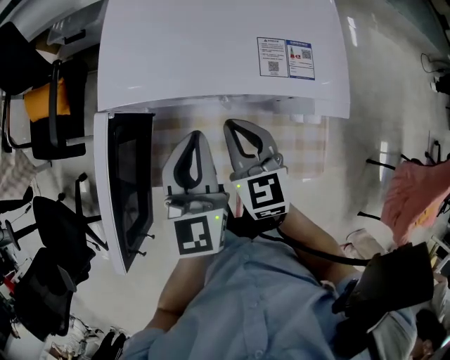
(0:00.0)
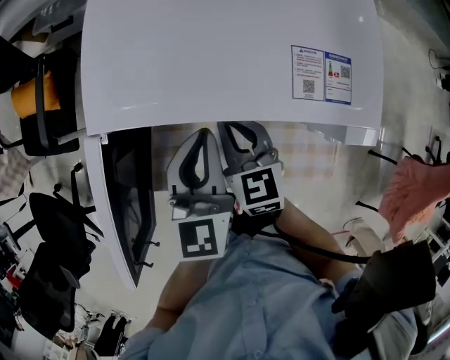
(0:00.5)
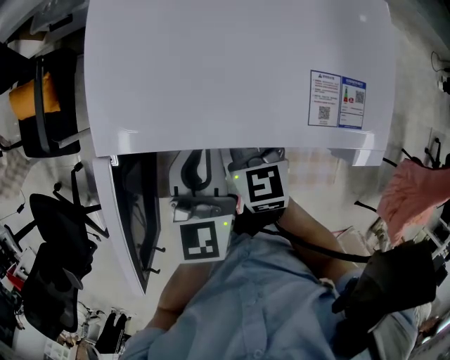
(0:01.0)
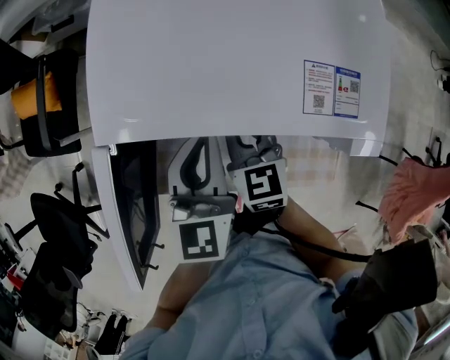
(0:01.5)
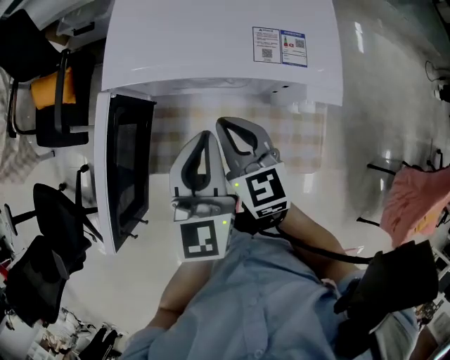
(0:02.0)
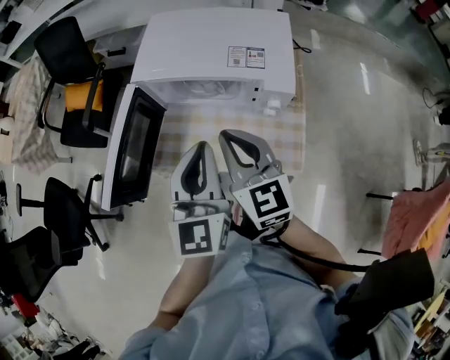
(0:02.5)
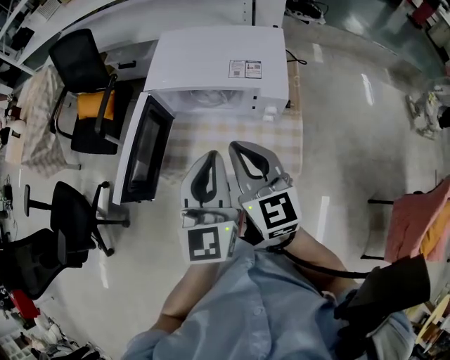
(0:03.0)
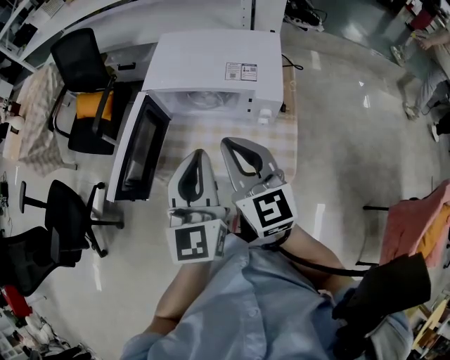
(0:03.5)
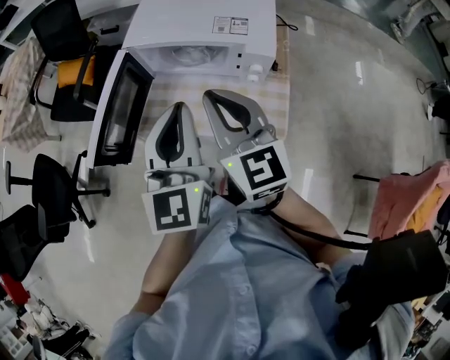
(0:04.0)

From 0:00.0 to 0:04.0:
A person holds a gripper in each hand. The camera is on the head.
From 0:00.0 to 0:02.0: The right gripper goes forward and returns, some 5 cm each way.
From 0:02.0 to 0:04.0: Both grippers move upward and backward, roughly 20 cm. The right gripper turns by approximately 20 degrees.

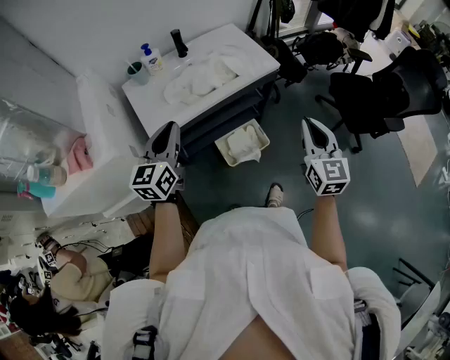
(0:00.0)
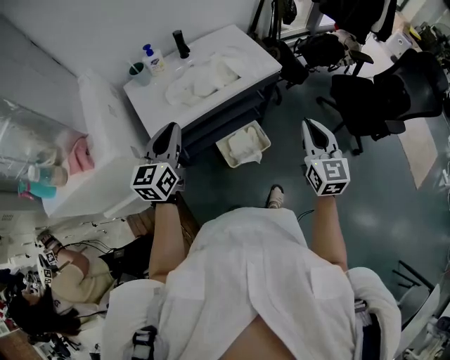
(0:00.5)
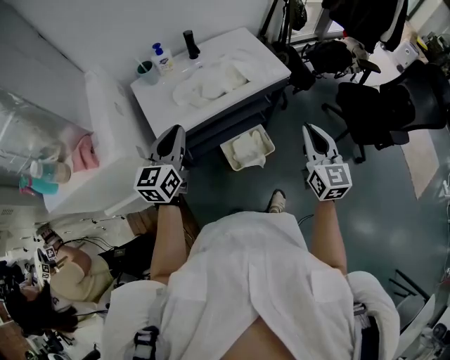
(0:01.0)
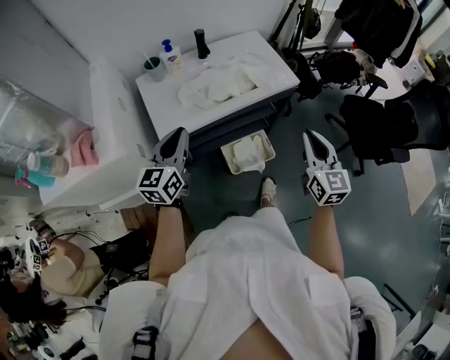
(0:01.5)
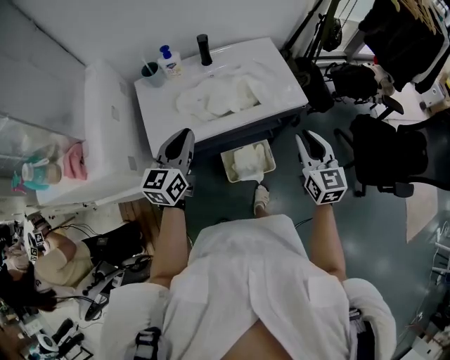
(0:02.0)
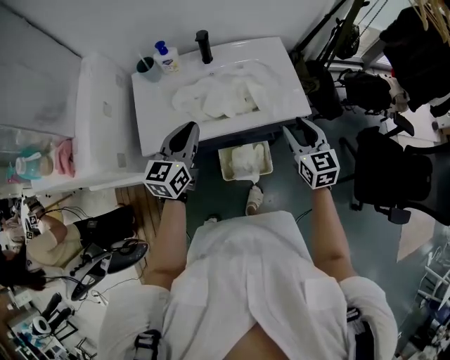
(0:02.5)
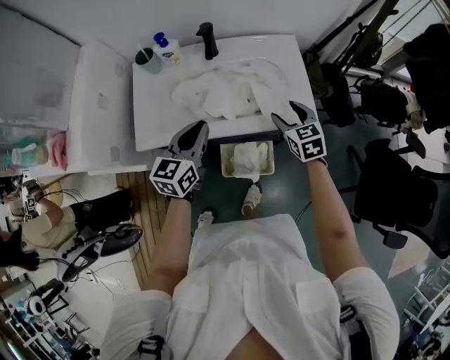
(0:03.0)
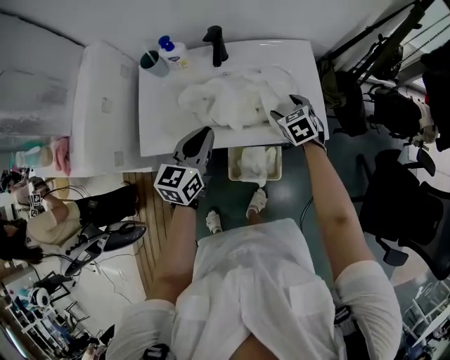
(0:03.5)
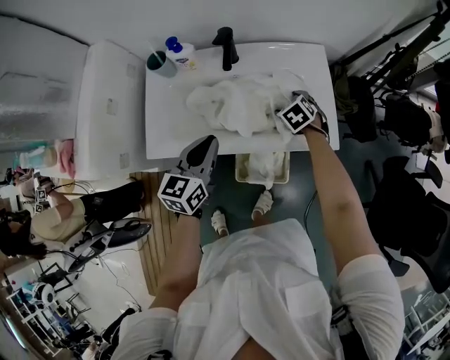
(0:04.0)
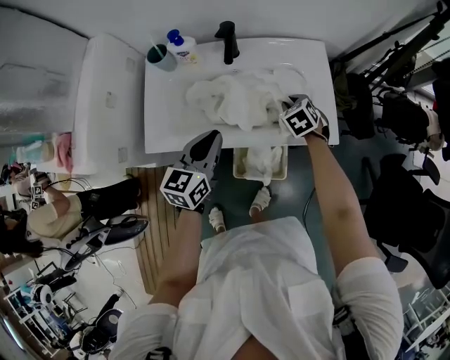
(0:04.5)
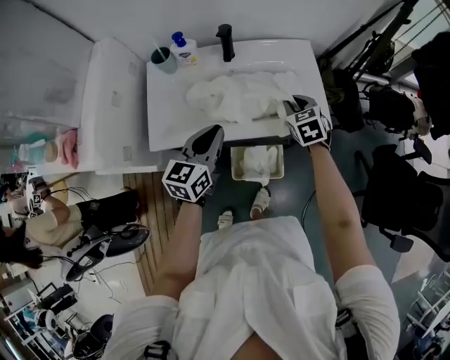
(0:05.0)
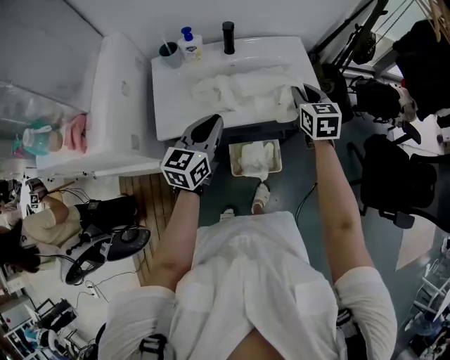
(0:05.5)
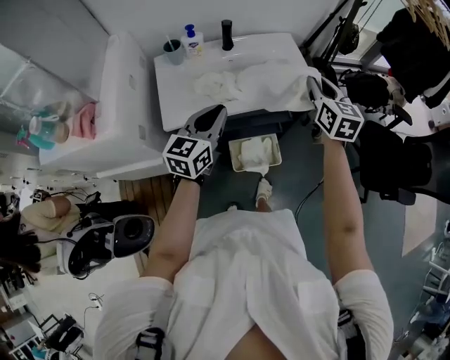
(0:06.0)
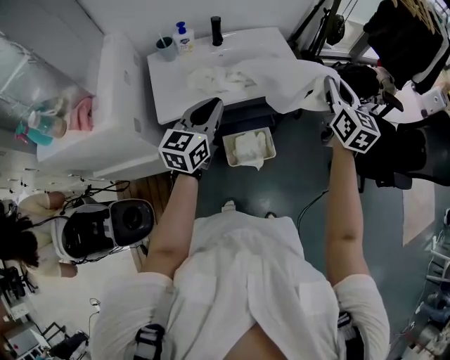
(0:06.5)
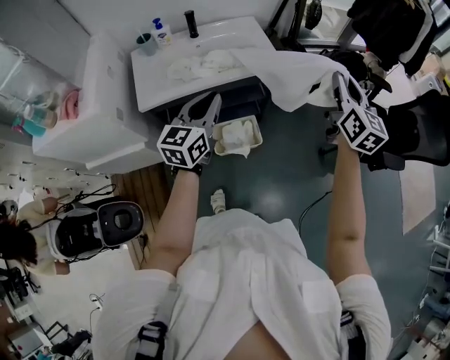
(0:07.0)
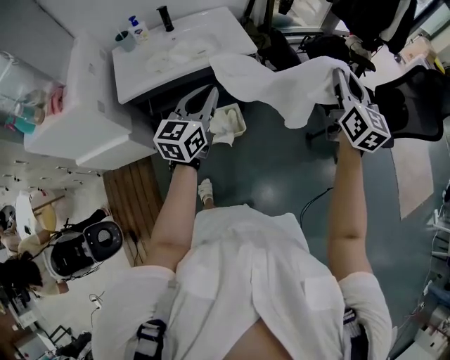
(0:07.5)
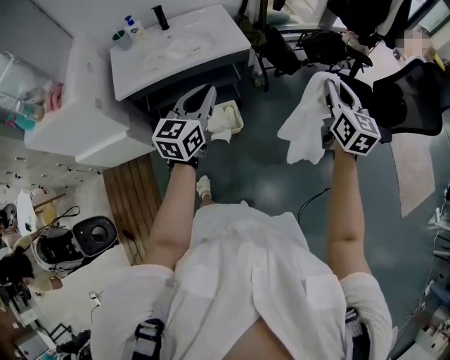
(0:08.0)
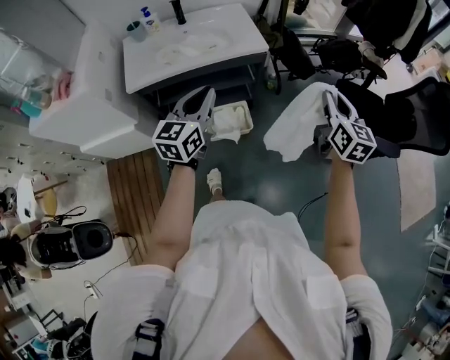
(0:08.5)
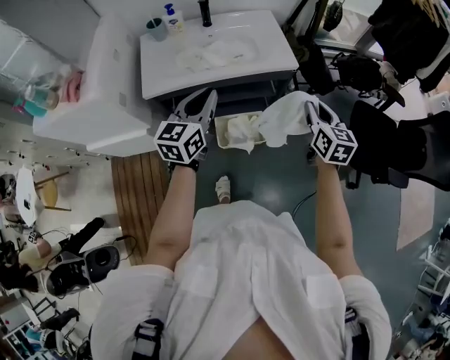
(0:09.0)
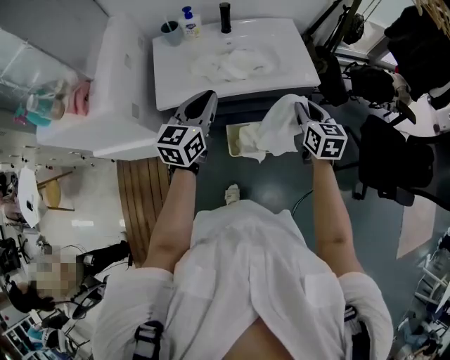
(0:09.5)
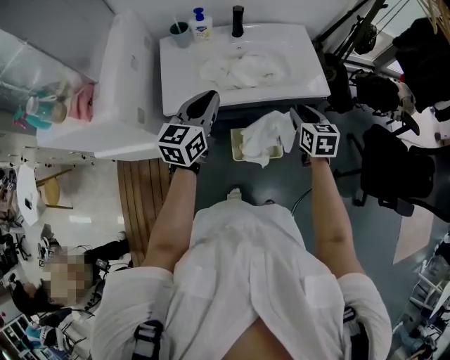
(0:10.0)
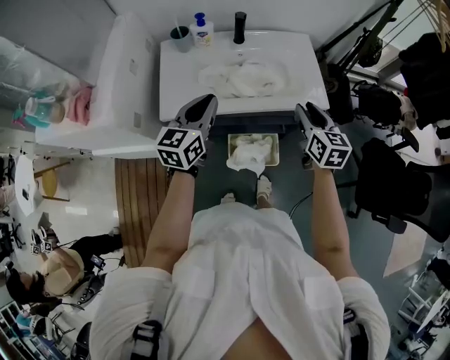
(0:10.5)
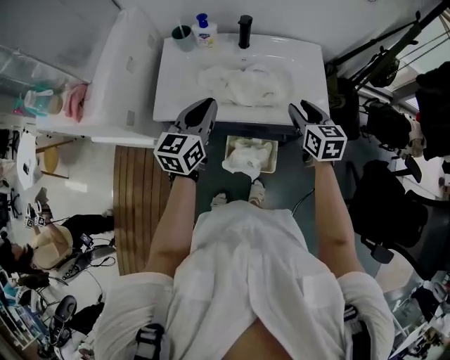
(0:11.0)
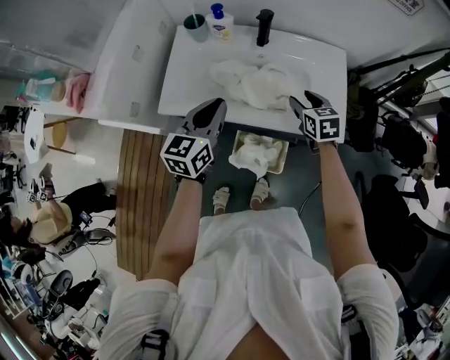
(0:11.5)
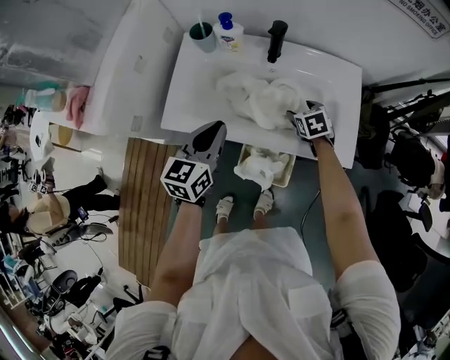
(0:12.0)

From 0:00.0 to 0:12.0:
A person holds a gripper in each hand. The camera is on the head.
From 0:00.0 to 0:02.0: The right gripper travels forward by some 20 cm; the left gripper is displaced forward by some 10 cm.
From 0:02.0 to 0:04.0: The left gripper travels forward, to the right and downward by some 15 cm. Meanwhile the right gripper goes roughly 40 cm forward and downward, tips its fingers downward by some 50 degrees, and opens.
From 0:04.0 to 0:06.0: The right gripper goes some 35 cm upward, tilts its fingers approximately 50 degrees upward, and closes. Meanwhile the left gripper moves roughly 20 cm, and swivels roughly 20 degrees.
From 0:06.0 to 0:08.0: The grippers both shift to the right and backward by roughly 40 cm.
From 0:08.0 to 0:10.0: The left gripper travels to the left and forward by some 35 cm. The right gripper heads to the left, forward and downward, covering approximately 50 cm, and changes its angle by some 30 degrees.
From 0:10.0 to 0:12.0: The right gripper is displaced forward and downward by about 30 cm, swivels approximately 40 degrees, and opens its fingers. The left gripper is displaced forward and downward by roughly 15 cm, and rotates roughly 20 degrees.

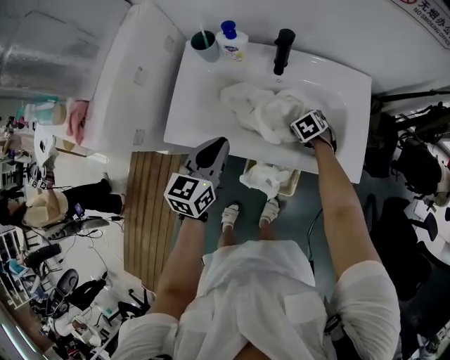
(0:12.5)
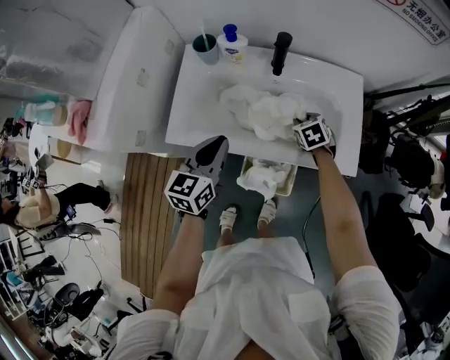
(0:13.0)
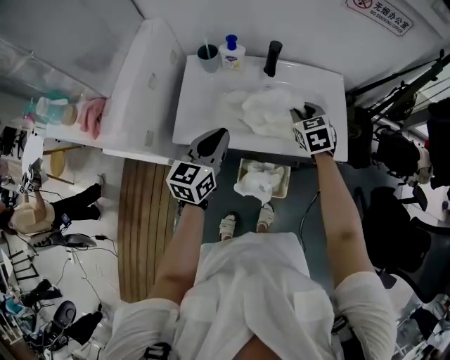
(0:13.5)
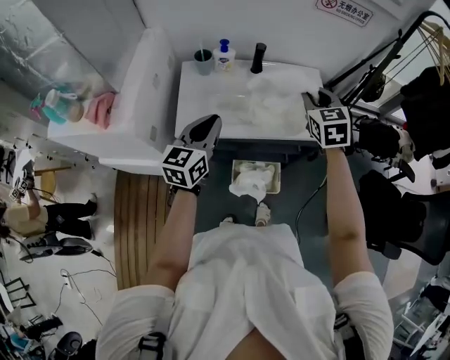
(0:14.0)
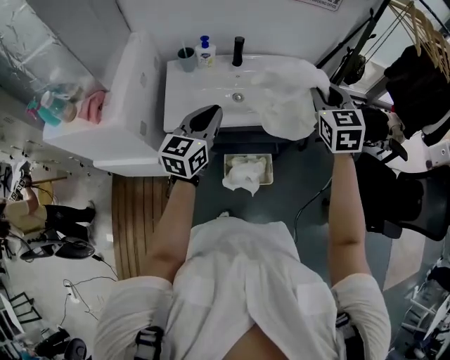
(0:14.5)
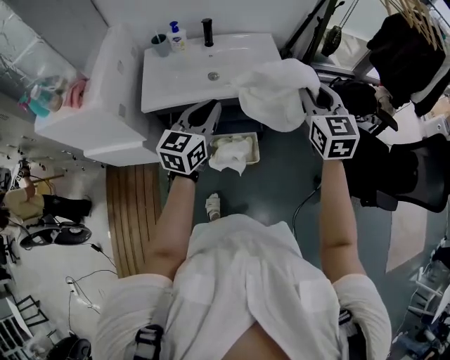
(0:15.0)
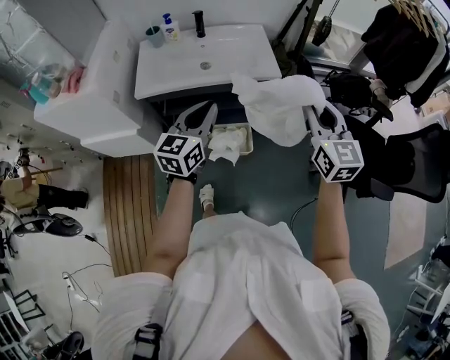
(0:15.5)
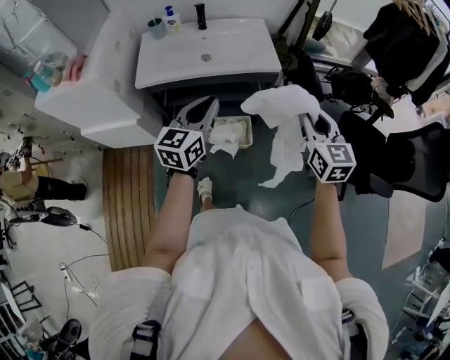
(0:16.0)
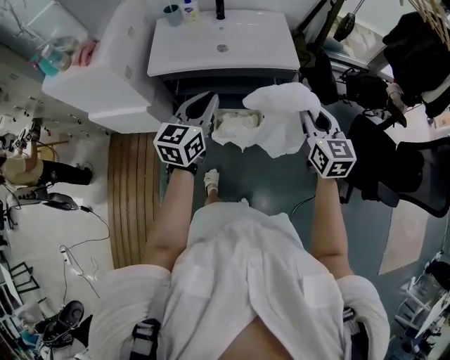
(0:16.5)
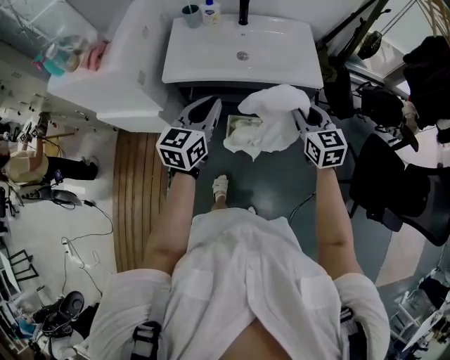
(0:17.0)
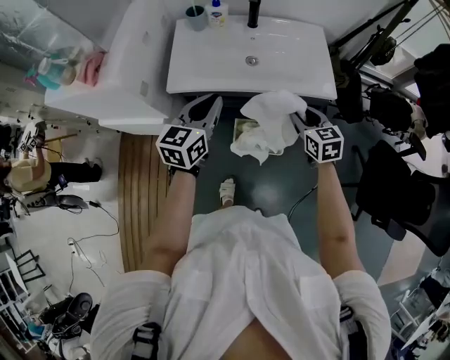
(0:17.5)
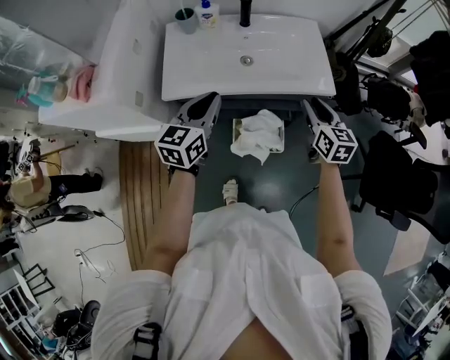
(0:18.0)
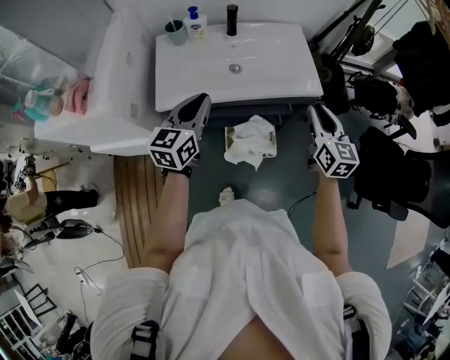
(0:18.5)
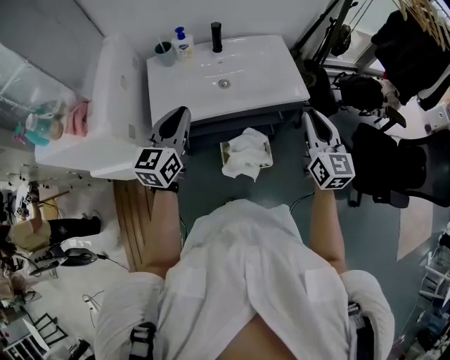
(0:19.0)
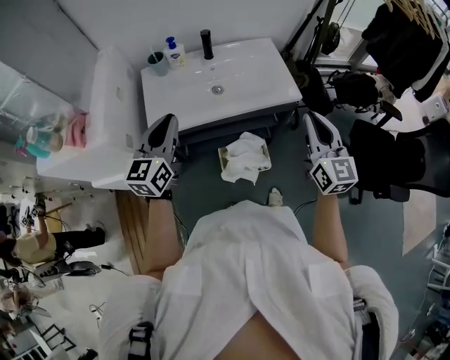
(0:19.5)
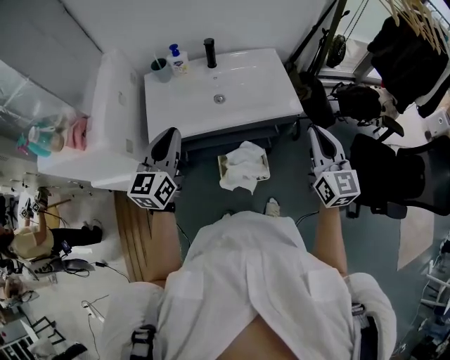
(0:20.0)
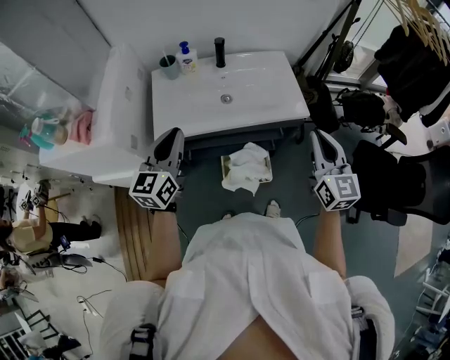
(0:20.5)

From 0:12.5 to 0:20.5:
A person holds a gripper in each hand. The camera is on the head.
From 0:12.5 to 0:14.5: The right gripper goes some 50 cm upward, tips its fingers upward by about 50 degrees, and closes its fingers, while the left gripper goes approximately 15 cm upward, and swivels some 30 degrees.
From 0:14.5 to 0:16.5: The left gripper goes roughly 20 cm backward and to the right. Meanwhile the right gripper moves backward, to the right and downward, some 30 cm, and swivels roughly 20 degrees.
From 0:16.5 to 0:18.5: The grippers both shift forward and to the left by roughly 20 cm.
From 0:18.5 to 0:20.5: The left gripper heads upward, covering about 5 cm. The right gripper goes approximately 10 cm upward and backward.

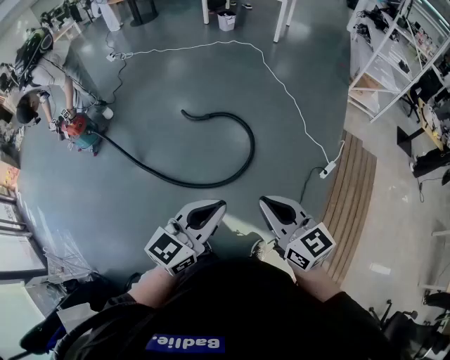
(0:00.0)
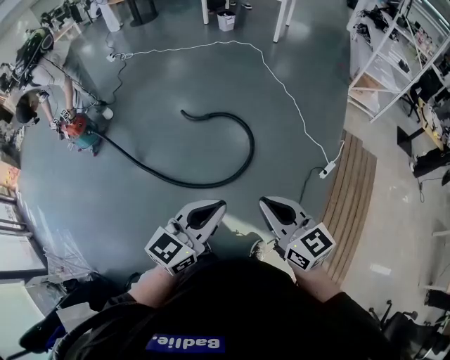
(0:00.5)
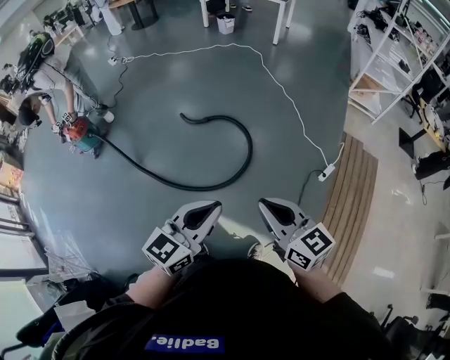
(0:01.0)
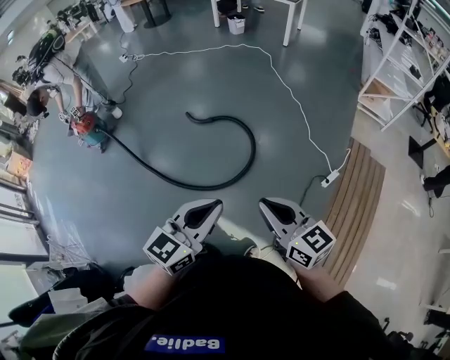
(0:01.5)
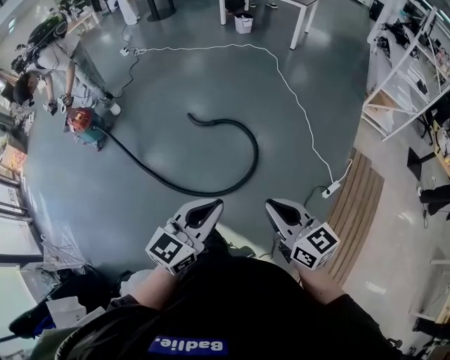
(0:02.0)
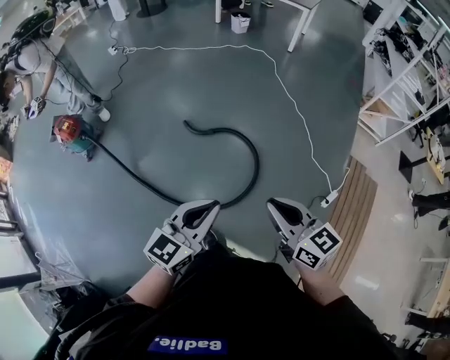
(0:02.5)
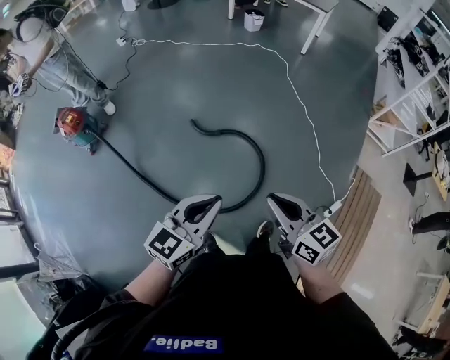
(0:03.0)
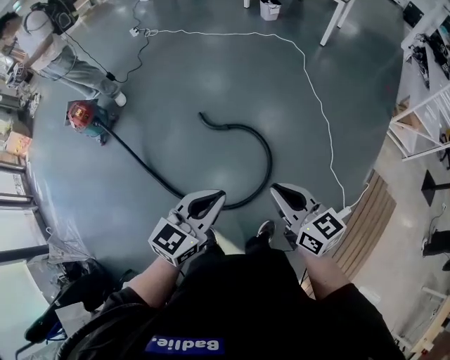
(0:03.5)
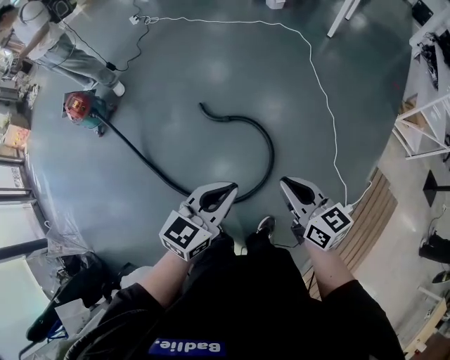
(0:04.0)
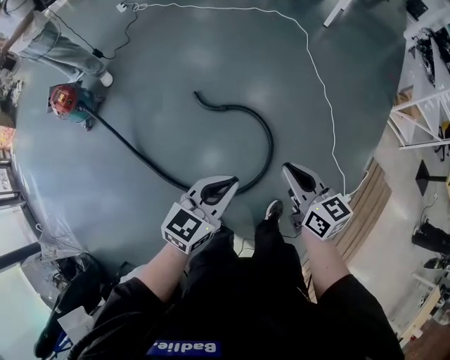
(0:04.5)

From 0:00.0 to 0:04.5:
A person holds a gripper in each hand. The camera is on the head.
From 0:00.0 to 0:02.0: The grippers both shift forward and to the right by approximately 10 cm.
From 0:02.0 to 0:04.5: The two grippers go roughly 35 cm forward.
